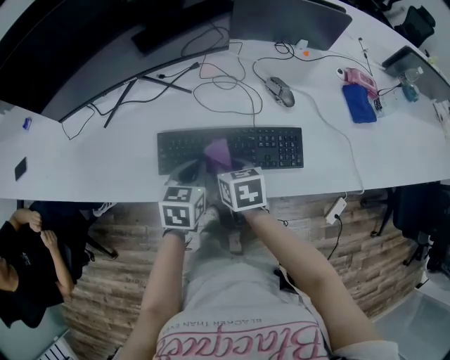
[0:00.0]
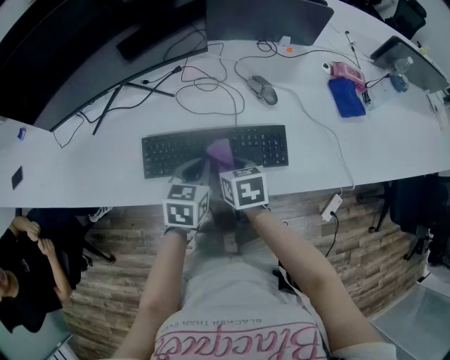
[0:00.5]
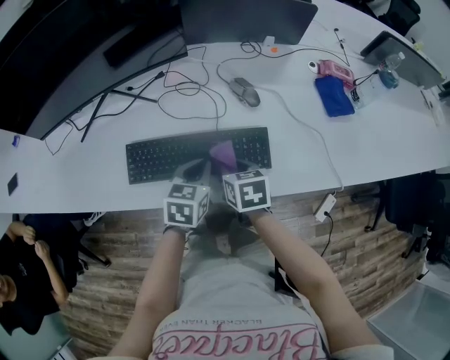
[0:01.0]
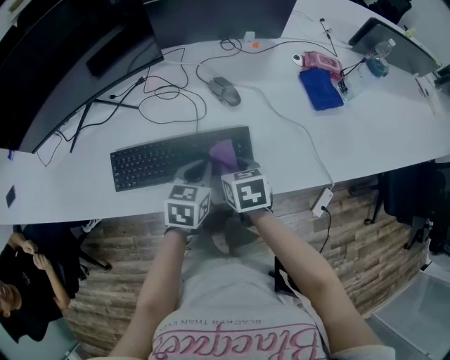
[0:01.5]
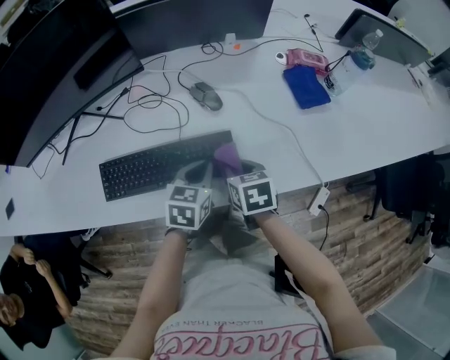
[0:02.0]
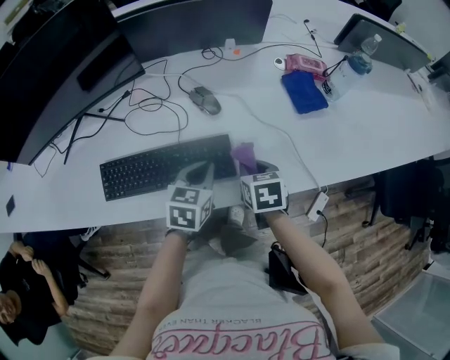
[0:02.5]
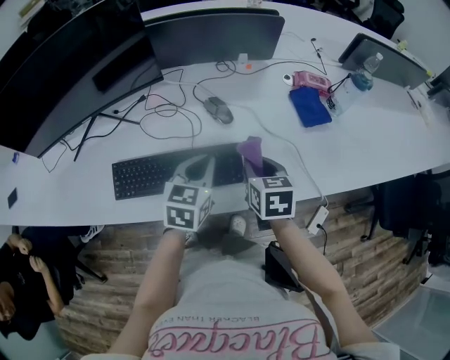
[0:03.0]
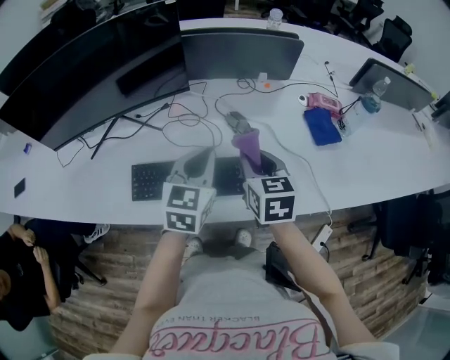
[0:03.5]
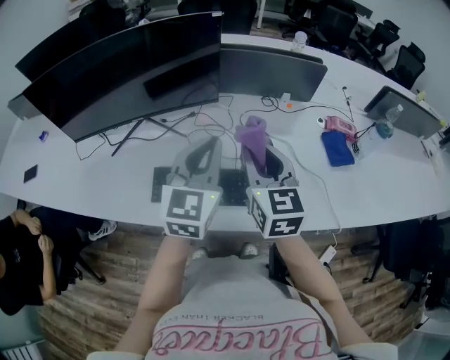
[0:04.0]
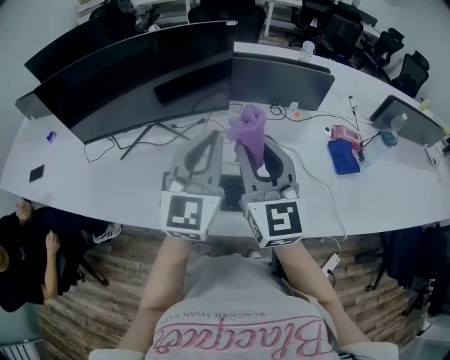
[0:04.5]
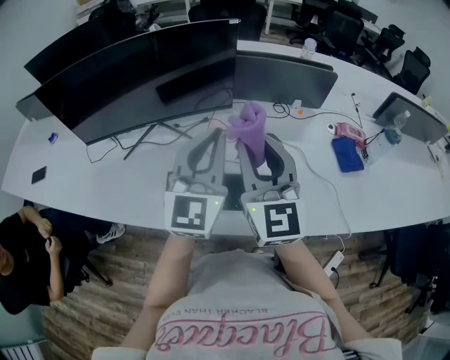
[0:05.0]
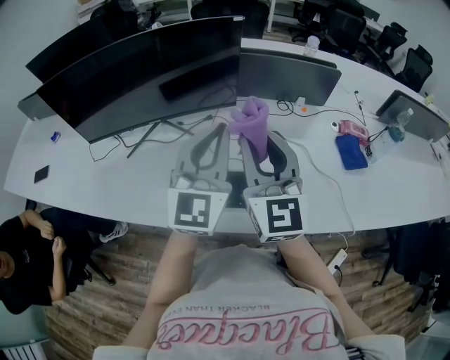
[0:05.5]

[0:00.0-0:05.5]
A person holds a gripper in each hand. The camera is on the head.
0:00.0 to 0:02.0: The two grippers go some 25 cm to the right.
0:02.0 to 0:03.5: The right gripper heads upward, covering approximately 15 cm, and changes its angle by roughly 20 degrees. Meanwhile the left gripper goes some 20 cm upward and to the left, and swivels about 20 degrees.
0:03.5 to 0:05.5: Both grippers travel together upward and to the left, roughly 20 cm. The left gripper turns by roughly 30 degrees; the right gripper angles its fingers upward, by roughly 40 degrees.

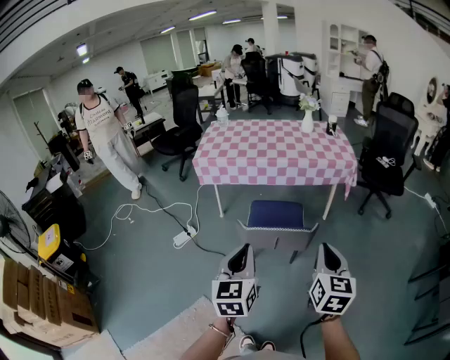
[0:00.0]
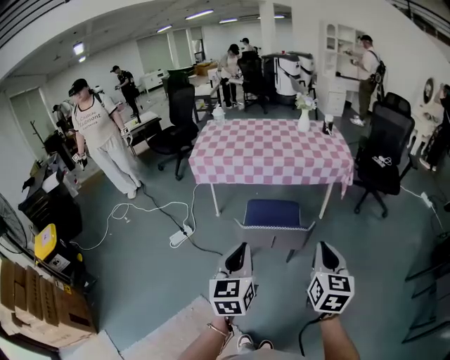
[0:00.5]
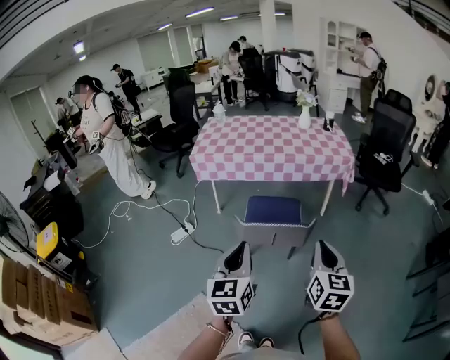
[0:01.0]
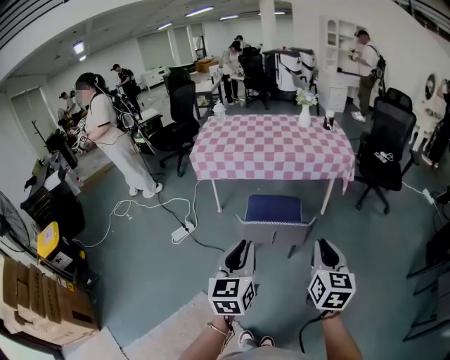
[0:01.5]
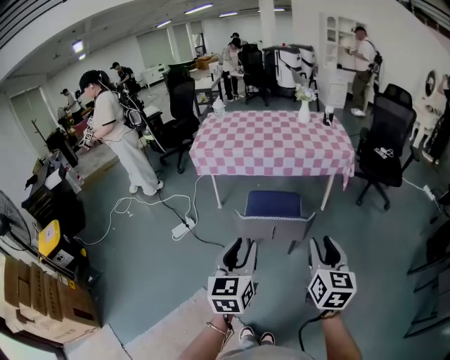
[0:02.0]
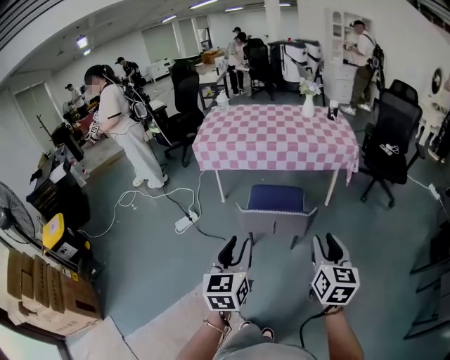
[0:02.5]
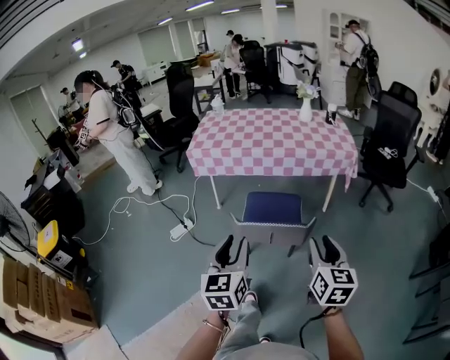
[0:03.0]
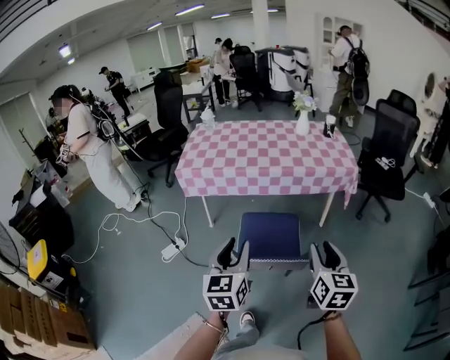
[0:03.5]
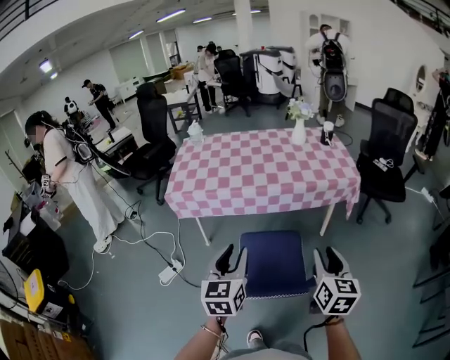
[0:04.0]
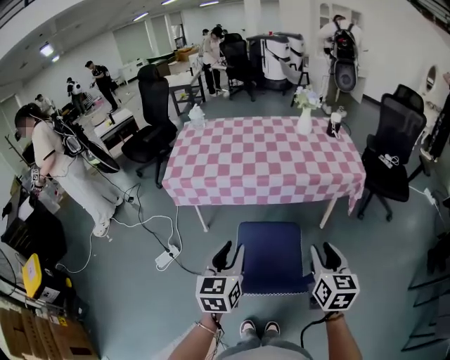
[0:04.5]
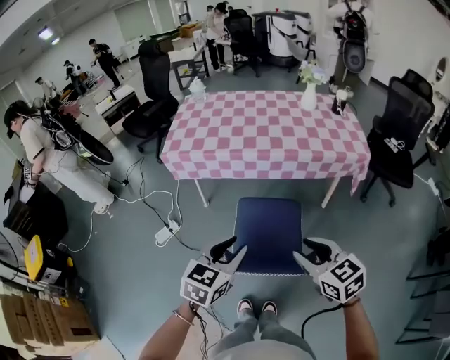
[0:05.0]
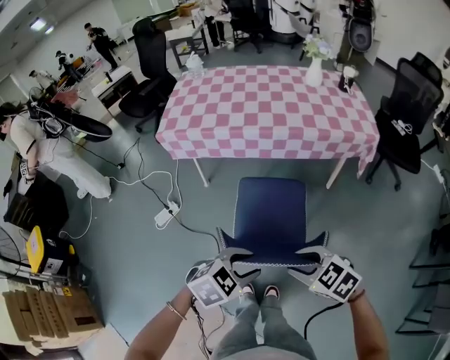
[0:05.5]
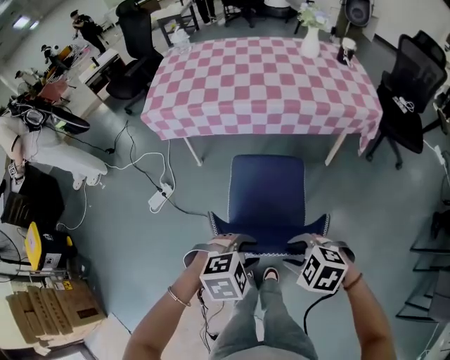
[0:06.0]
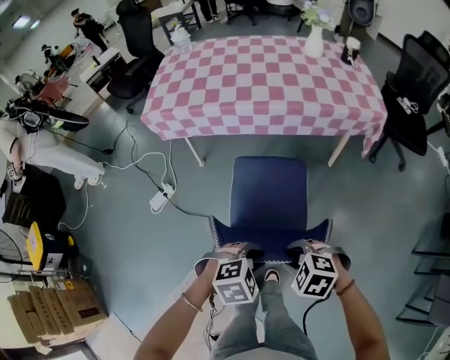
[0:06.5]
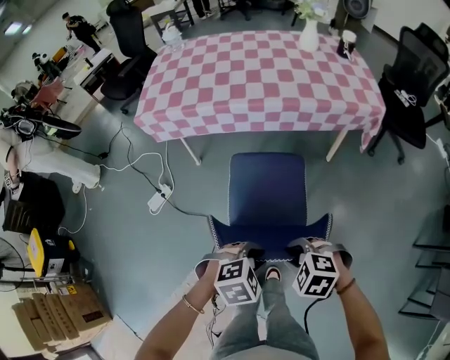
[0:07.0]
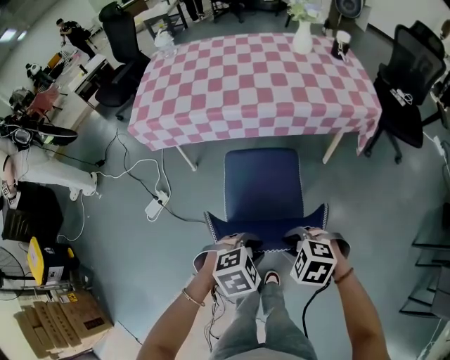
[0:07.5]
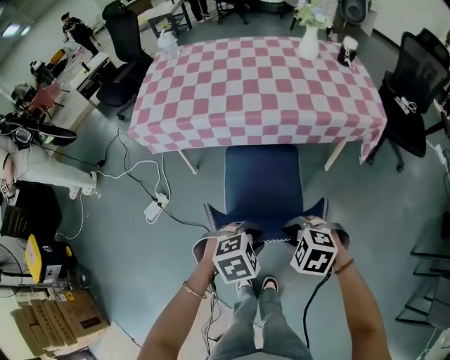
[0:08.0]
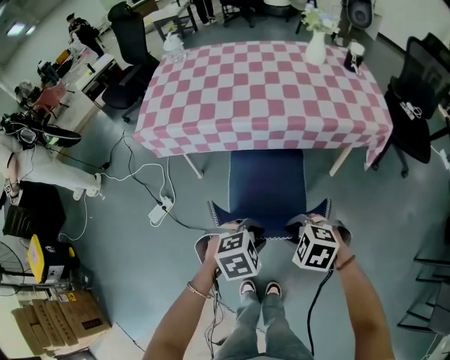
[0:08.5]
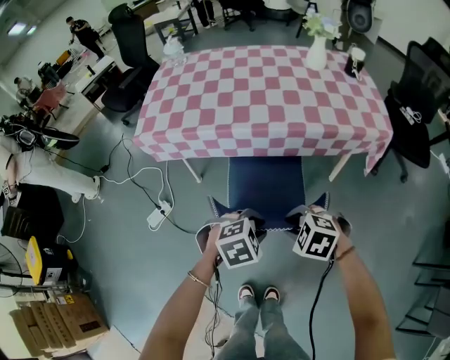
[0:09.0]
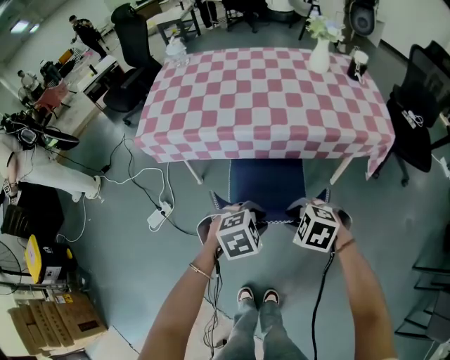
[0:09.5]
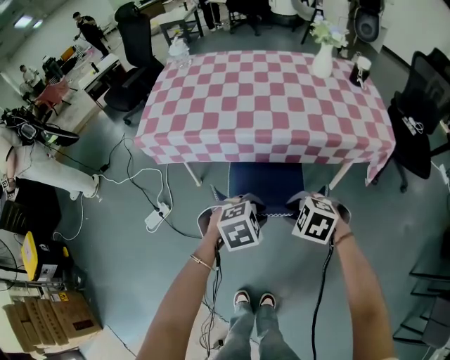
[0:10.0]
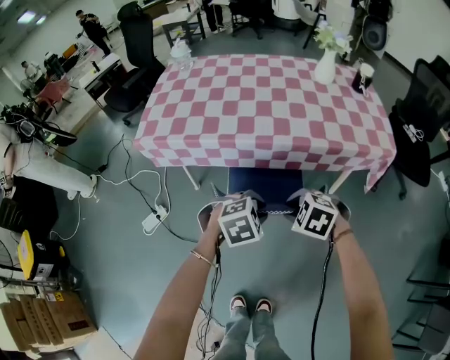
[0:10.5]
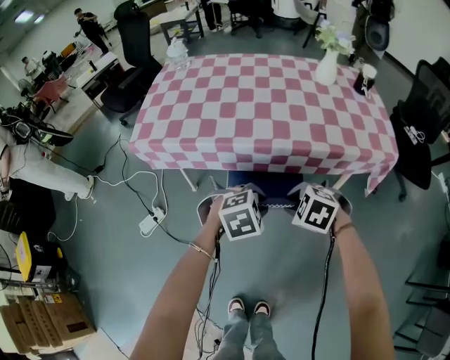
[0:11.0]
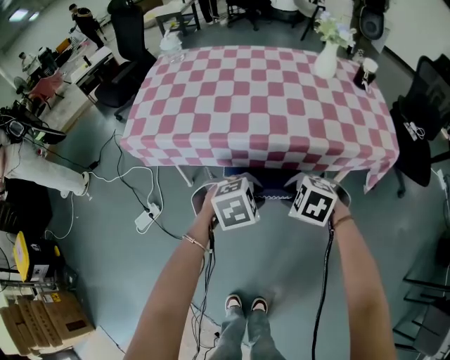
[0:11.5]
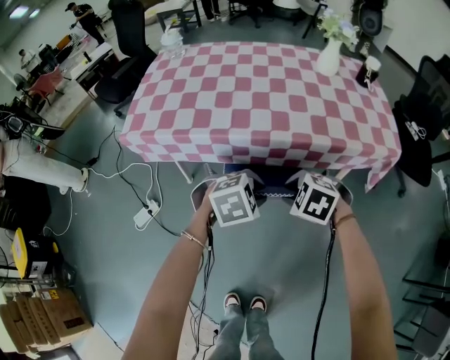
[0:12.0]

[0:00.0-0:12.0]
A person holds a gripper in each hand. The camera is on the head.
0:00.0 to 0:02.0: The left gripper opens, while the right gripper opens.
0:02.0 to 0:04.0: Both grippers move forward, some 30 cm.
0:04.0 to 0:06.0: Both grippers travel together downward, about 20 cm. The right gripper tilts its fingers some 50 degrees downward; the left gripper angles its fingers downward, by some 50 degrees.
0:06.0 to 0:08.0: The left gripper moves roughly 15 cm; the right gripper shifts by some 15 cm.
0:08.0 to 0:10.0: The right gripper changes place by about 15 cm; the left gripper ends up some 15 cm from where it was.
0:10.0 to 0:12.0: The grippers both shift forward by roughly 10 cm.

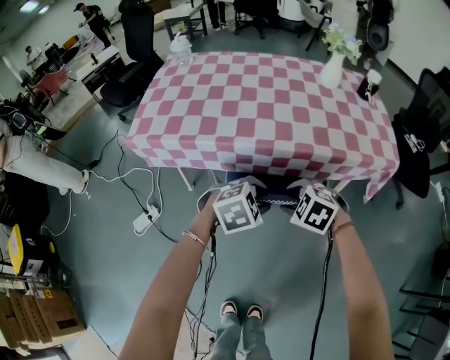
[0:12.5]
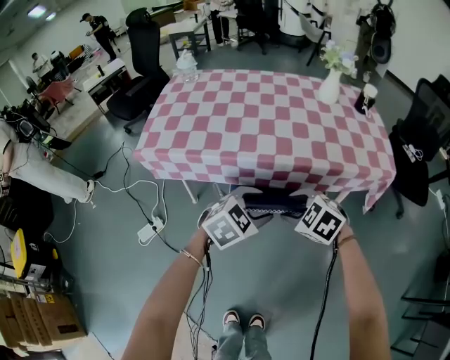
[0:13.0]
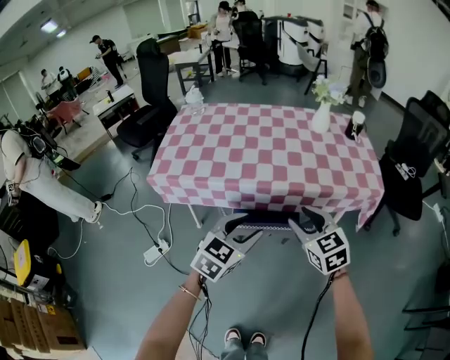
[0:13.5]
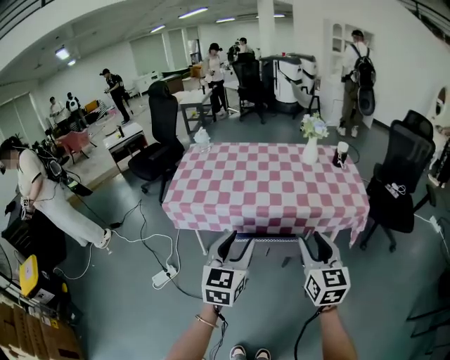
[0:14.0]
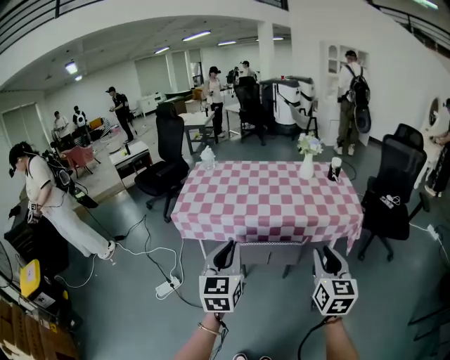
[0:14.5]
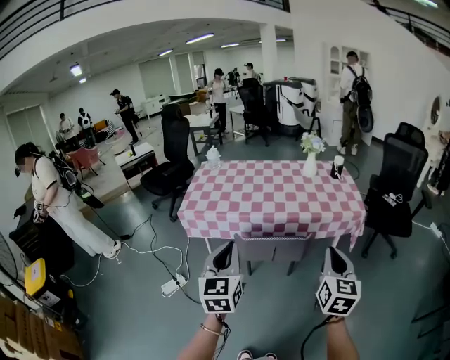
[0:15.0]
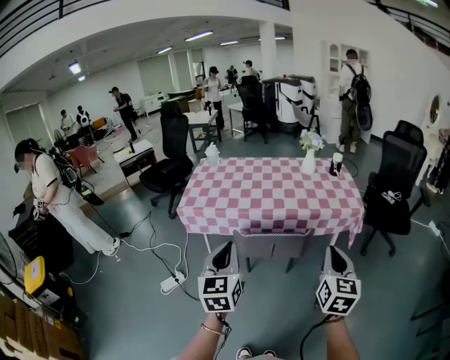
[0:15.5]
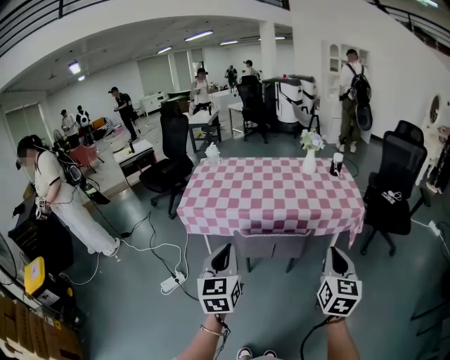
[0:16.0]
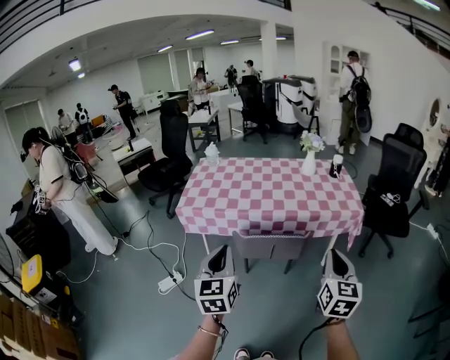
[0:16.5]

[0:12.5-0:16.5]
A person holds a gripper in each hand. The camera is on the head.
0:12.5 to 0:14.5: Both grippers move upward and backward, roughly 40 cm. The left gripper tilts its fingers some 50 degrees upward, and closes; the right gripper points its fingers roughly 60 degrees further upward.
0:14.5 to 0:16.5: The left gripper moves some 5 cm. The right gripper closes.

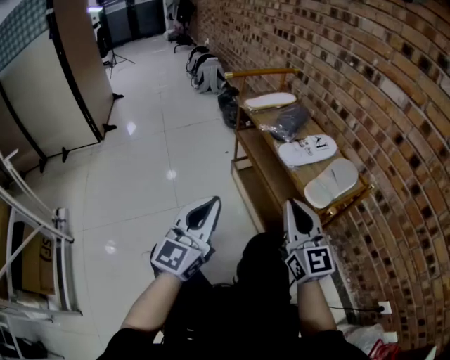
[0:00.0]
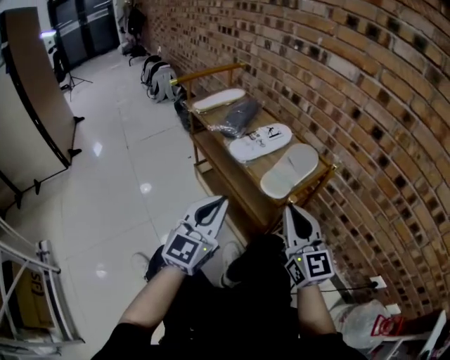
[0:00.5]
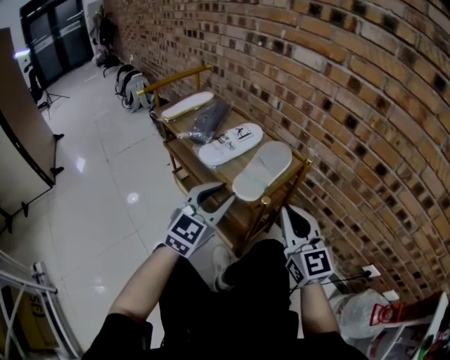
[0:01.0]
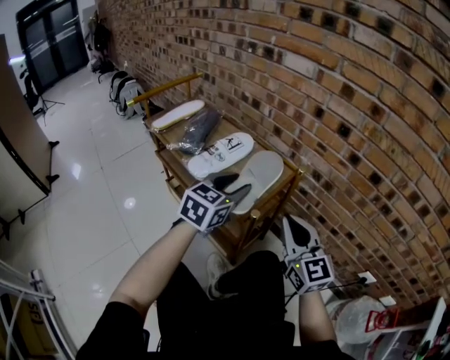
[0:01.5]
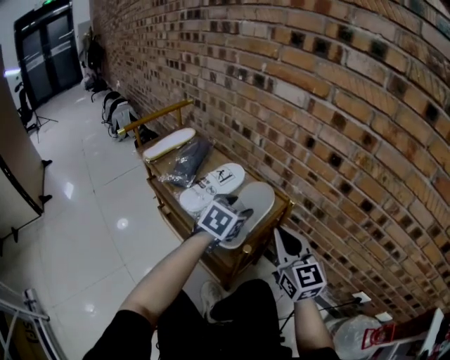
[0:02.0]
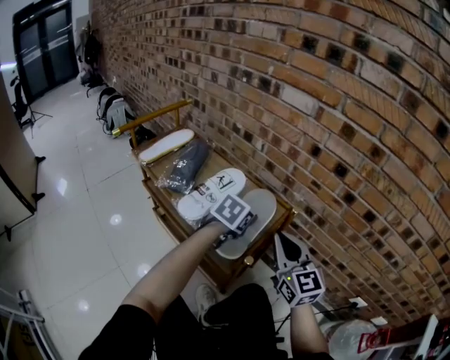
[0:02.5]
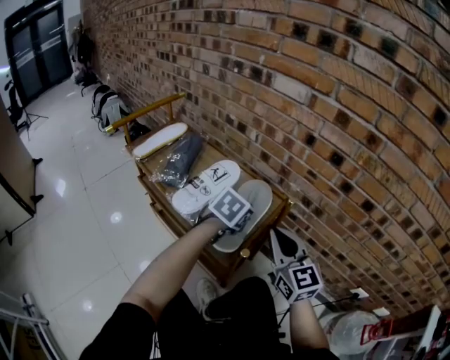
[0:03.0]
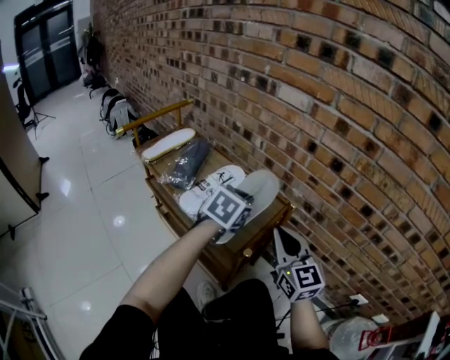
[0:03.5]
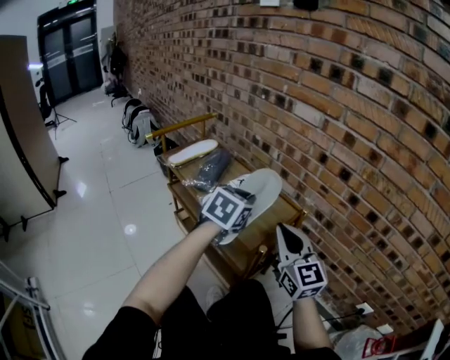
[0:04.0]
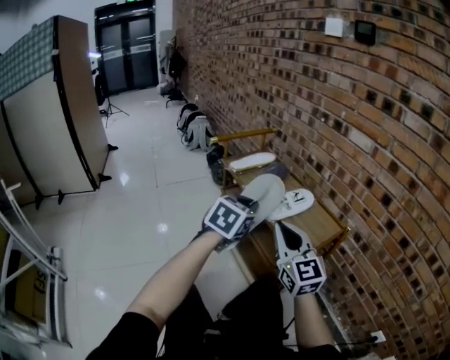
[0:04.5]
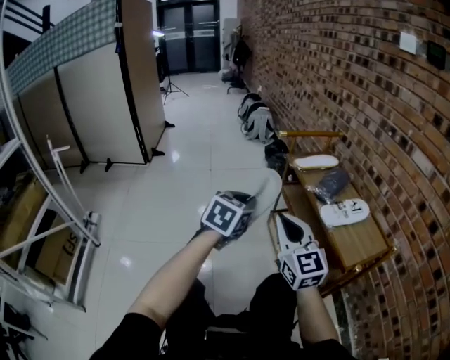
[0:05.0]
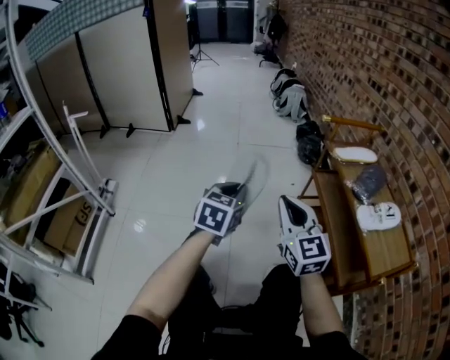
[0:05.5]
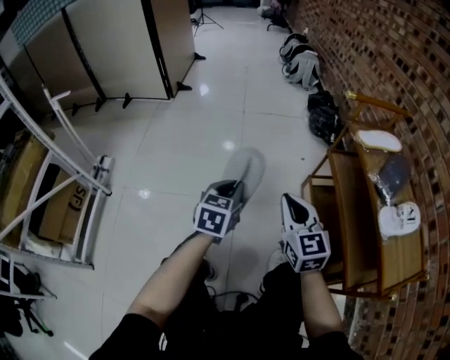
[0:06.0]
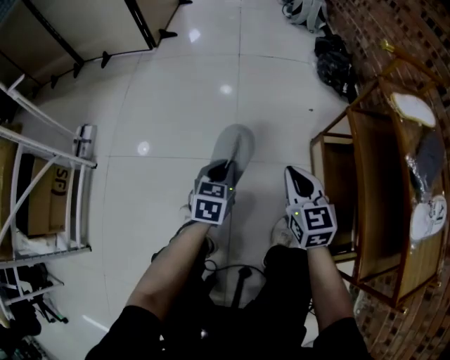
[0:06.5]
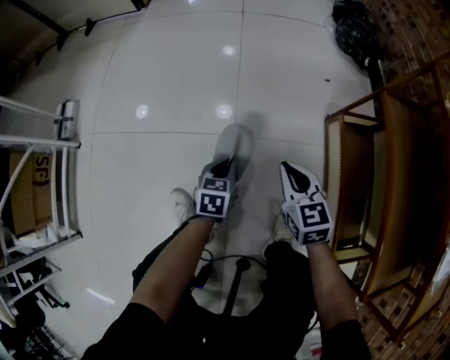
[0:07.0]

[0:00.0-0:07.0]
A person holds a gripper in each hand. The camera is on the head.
0:00.0 to 0:02.0: The right gripper travels to the right and forward by some 20 cm, and turns by roughly 20 degrees; the left gripper shifts some 40 cm to the right and forward, angles its fingers downward, by approximately 50 degrees, and opens its fingers.
0:02.0 to 0:03.5: The left gripper closes.
0:03.5 to 0:05.0: The left gripper changes place by roughly 40 cm, and swivels approximately 40 degrees. The right gripper changes place by some 35 cm, and turns by some 40 degrees.
0:05.0 to 0:07.0: The left gripper moves downward, approximately 50 cm, and changes its angle by roughly 40 degrees. Meanwhile the right gripper moves downward and forward, roughly 50 cm, and tilts its fingers about 40 degrees downward.
